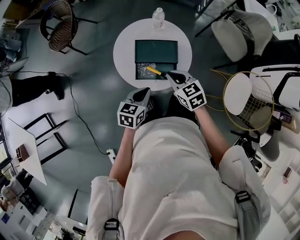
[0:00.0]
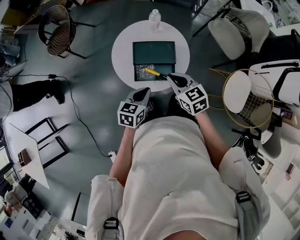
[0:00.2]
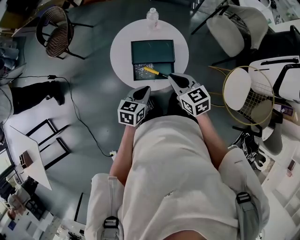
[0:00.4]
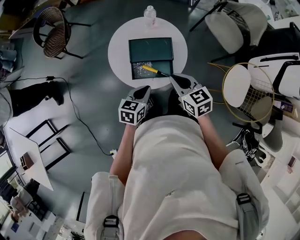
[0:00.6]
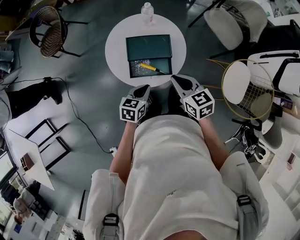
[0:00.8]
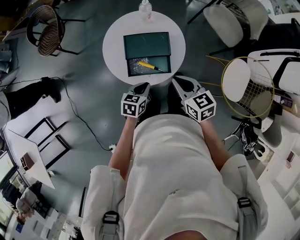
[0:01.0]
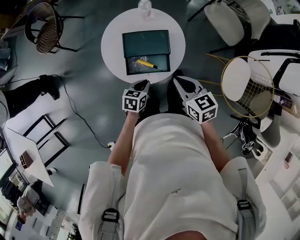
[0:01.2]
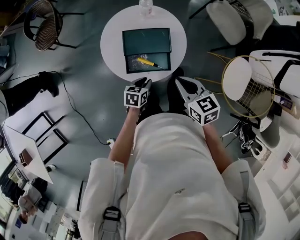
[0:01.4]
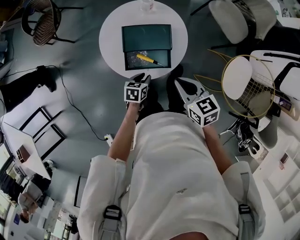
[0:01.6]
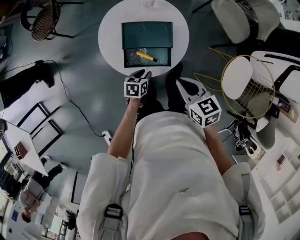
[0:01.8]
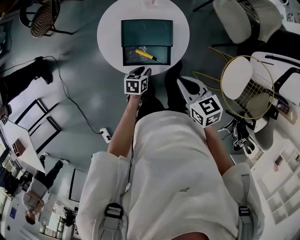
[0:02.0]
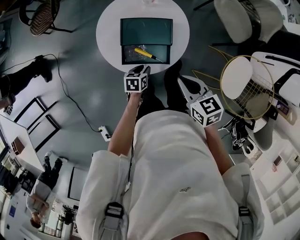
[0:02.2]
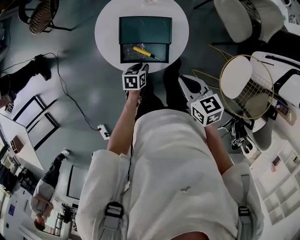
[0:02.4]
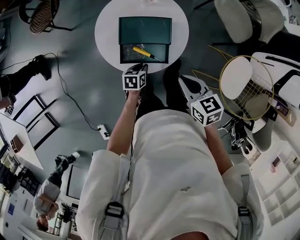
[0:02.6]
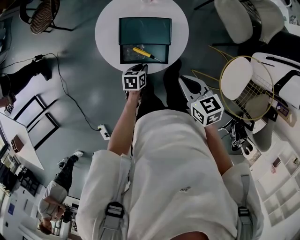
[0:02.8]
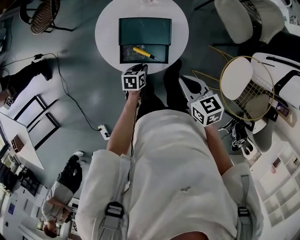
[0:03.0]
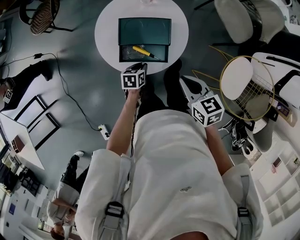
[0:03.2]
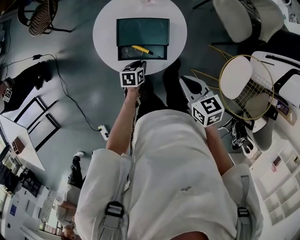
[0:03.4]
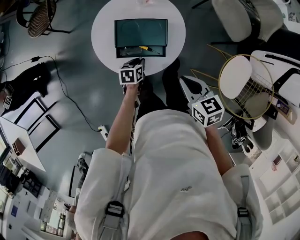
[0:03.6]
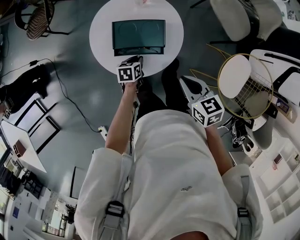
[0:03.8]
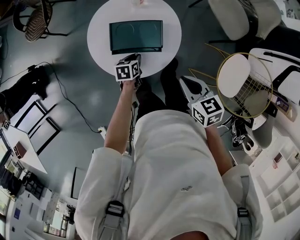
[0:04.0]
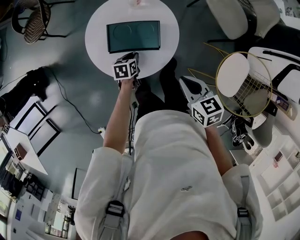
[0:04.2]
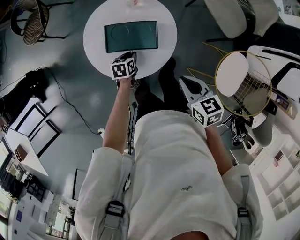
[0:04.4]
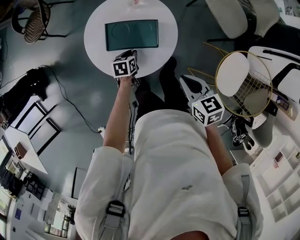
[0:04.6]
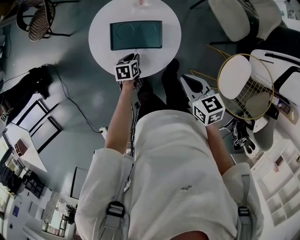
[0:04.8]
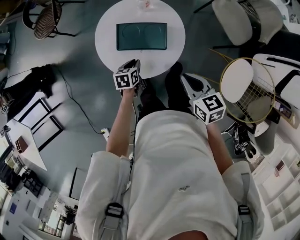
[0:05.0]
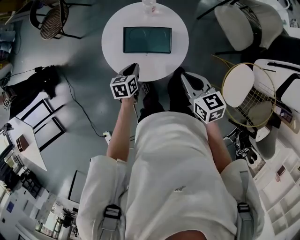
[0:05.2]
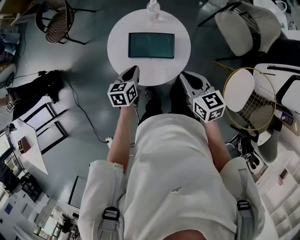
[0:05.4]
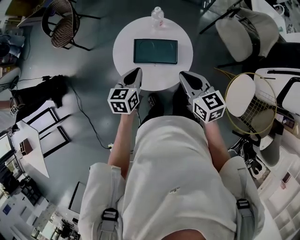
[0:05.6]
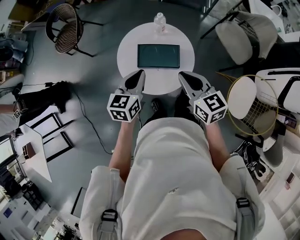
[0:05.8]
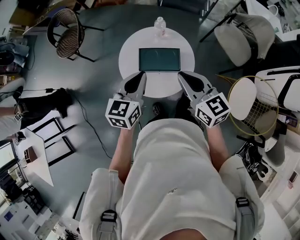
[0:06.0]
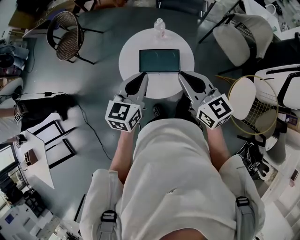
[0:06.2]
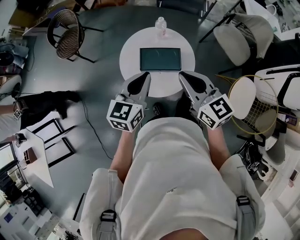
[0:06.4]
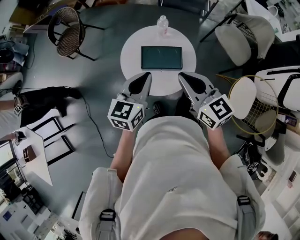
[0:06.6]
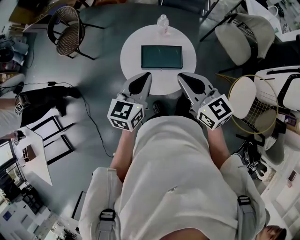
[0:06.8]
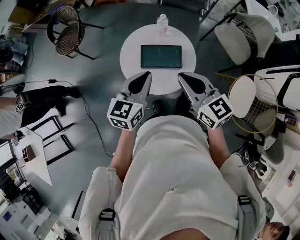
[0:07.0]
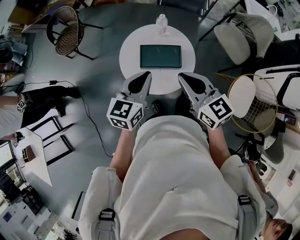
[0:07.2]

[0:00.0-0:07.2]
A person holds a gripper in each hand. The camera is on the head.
0:00.0 to 0:01.4: The right gripper is displaced to the right by some 5 cm. The left gripper heads downward, covering roughly 15 cm.
0:01.4 to 0:02.8: The left gripper heads downward, covering roughly 5 cm.
0:02.8 to 0:04.4: The left gripper shifts roughly 10 cm forward. The right gripper heads to the right, covering roughly 5 cm.
0:04.4 to 0:05.8: The right gripper heads upward, to the left and forward, covering approximately 15 cm, and swivels approximately 20 degrees. Meanwhile the left gripper is displaced upward by approximately 30 cm, and swivels some 30 degrees.
0:05.8 to 0:07.2: Both grippers travel together upward, roughly 5 cm.

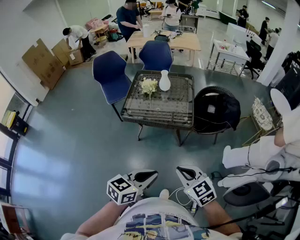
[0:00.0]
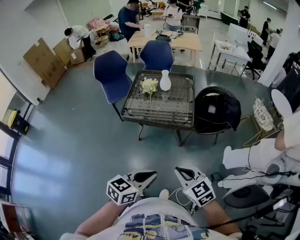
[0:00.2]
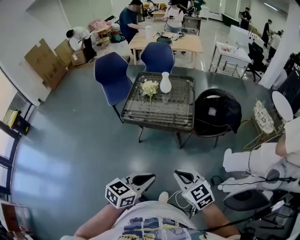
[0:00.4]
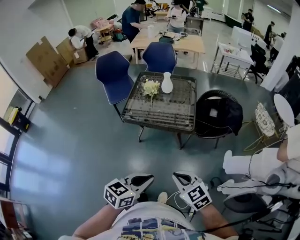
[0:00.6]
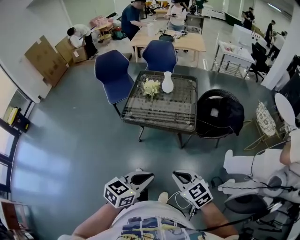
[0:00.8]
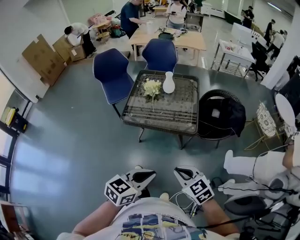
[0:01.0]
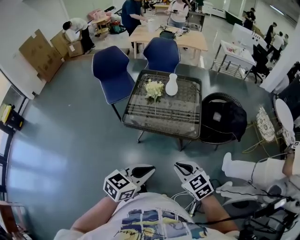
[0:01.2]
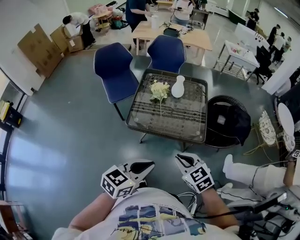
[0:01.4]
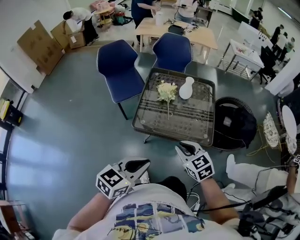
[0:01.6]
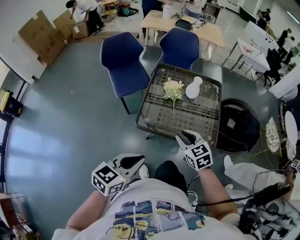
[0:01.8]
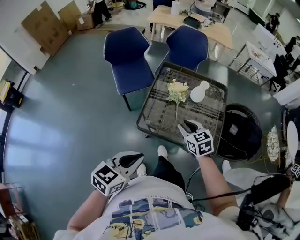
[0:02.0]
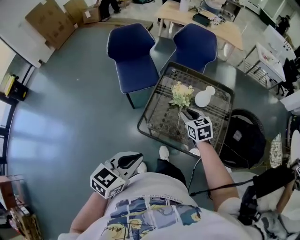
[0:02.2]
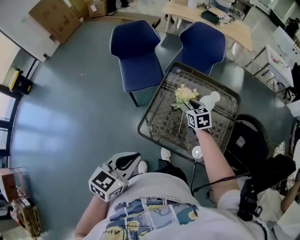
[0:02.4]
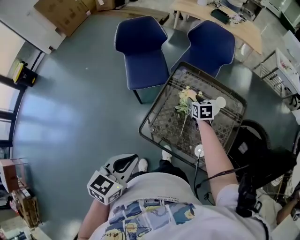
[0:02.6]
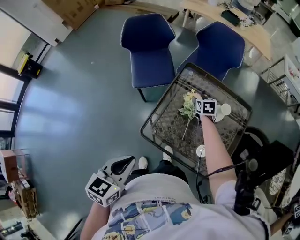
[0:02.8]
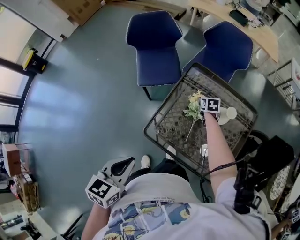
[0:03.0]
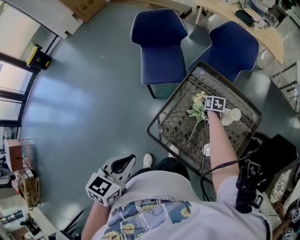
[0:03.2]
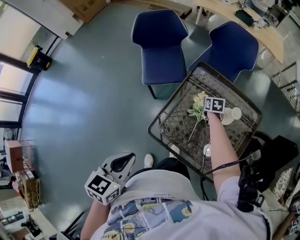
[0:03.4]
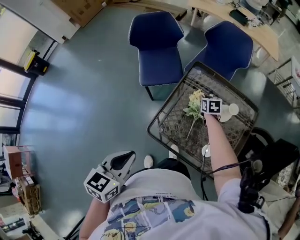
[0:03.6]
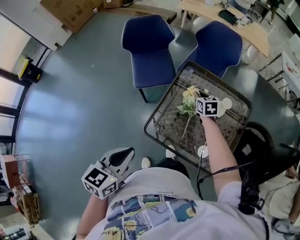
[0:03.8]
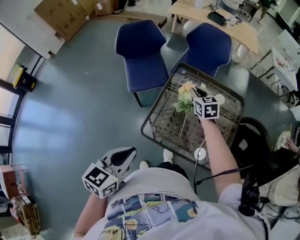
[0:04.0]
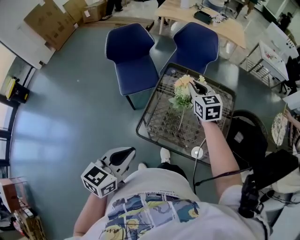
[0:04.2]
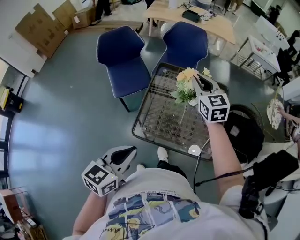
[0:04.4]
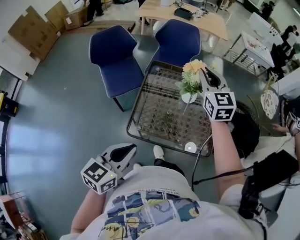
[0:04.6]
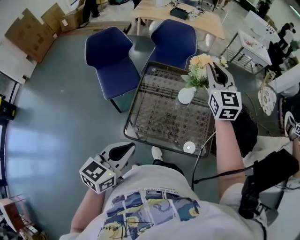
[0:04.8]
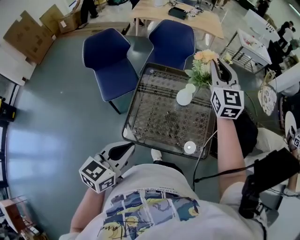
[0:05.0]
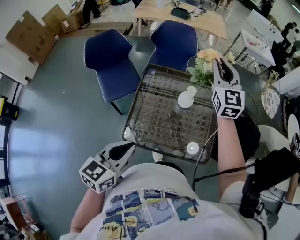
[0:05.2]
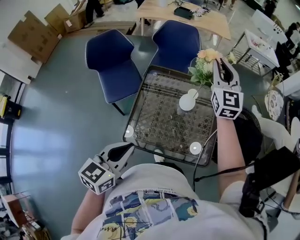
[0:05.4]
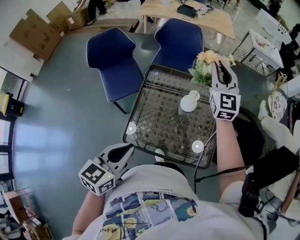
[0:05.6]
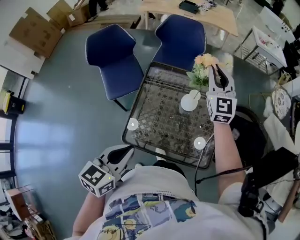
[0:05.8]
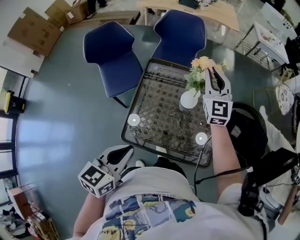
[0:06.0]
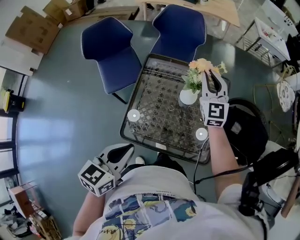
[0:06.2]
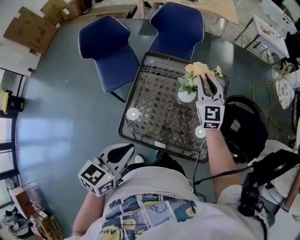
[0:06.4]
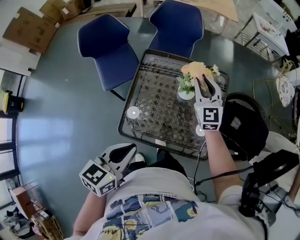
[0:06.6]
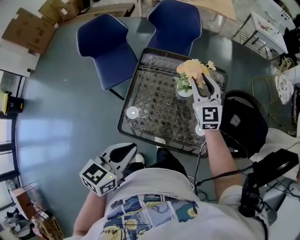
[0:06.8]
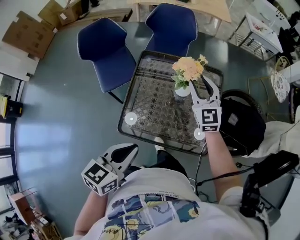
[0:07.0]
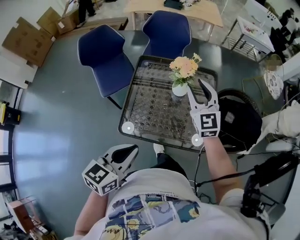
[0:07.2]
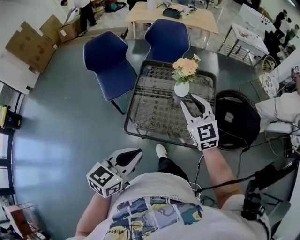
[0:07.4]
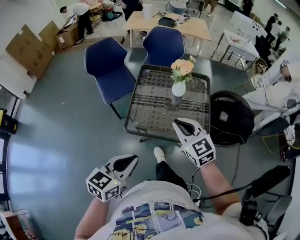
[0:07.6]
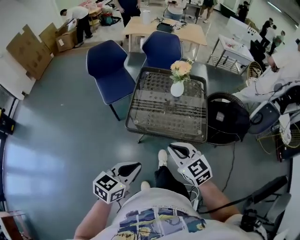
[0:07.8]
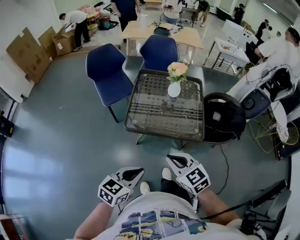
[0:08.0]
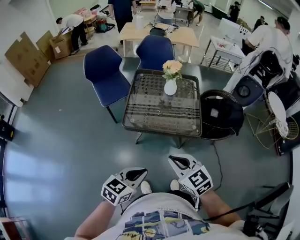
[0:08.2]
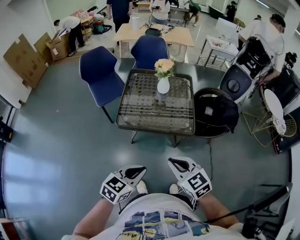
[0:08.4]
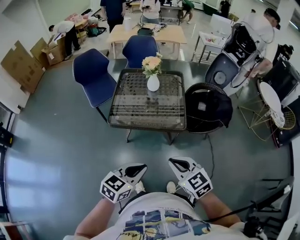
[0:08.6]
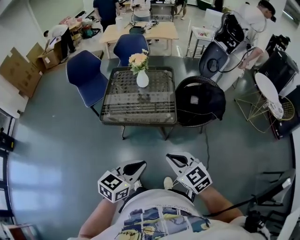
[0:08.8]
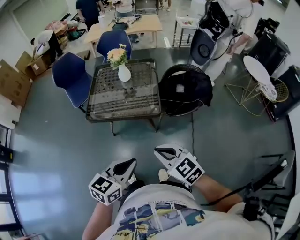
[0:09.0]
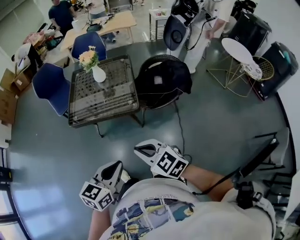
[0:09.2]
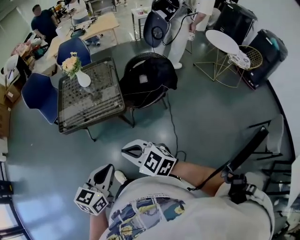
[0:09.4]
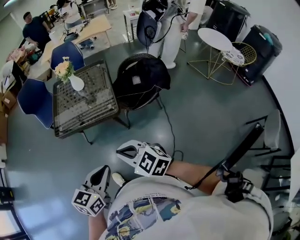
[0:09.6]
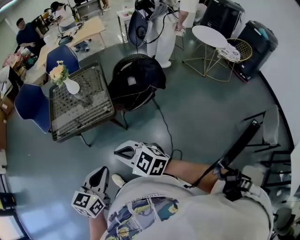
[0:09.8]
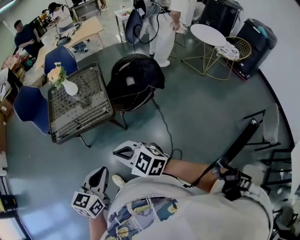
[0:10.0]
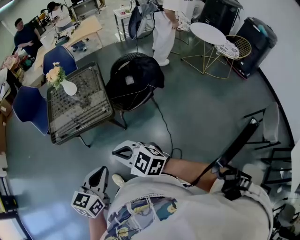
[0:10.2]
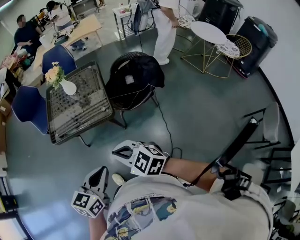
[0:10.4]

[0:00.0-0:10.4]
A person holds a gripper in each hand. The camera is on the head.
0:00.0 to 0:01.4: The two grippers go some 25 cm forward and to the left.
0:01.4 to 0:03.0: The left gripper goes about 30 cm forward and to the left, and swivels approximately 40 degrees; the right gripper heads forward and downward, covering some 70 cm, changes its angle by about 30 degrees, and opens its fingers.
0:03.0 to 0:04.4: The right gripper heads upward, covering approximately 35 cm, tilts its fingers some 40 degrees upward, and closes. The left gripper shifts by about 5 cm, and rotates approximately 30 degrees.
0:04.4 to 0:06.0: The grippers both shift forward and to the right by about 15 cm. The right gripper swivels some 20 degrees.
0:06.0 to 0:07.4: The right gripper heads backward, covering some 25 cm, and opens its fingers, while the left gripper goes approximately 15 cm backward.
0:07.4 to 0:09.0: The grippers both shift backward and to the right by roughly 40 cm. The right gripper swivels some 20 degrees, and closes.
0:09.0 to 0:10.4: The grippers both shift to the right by about 10 cm.

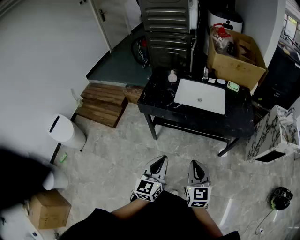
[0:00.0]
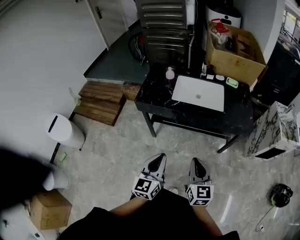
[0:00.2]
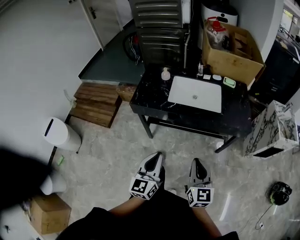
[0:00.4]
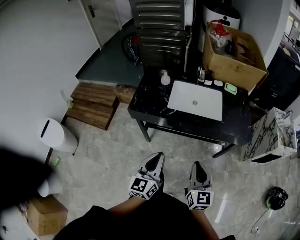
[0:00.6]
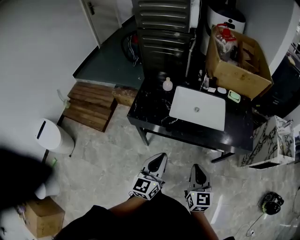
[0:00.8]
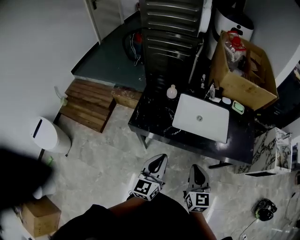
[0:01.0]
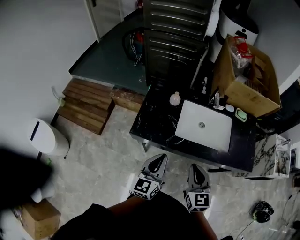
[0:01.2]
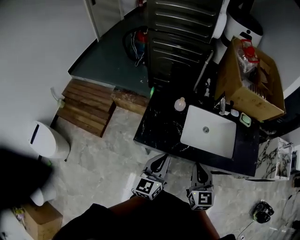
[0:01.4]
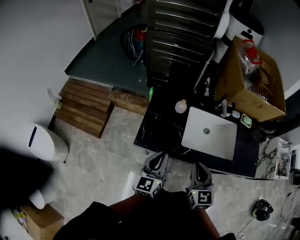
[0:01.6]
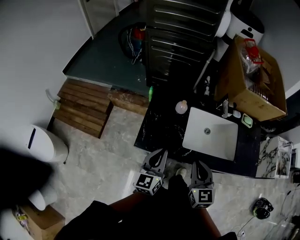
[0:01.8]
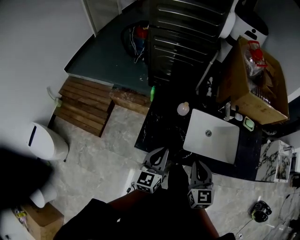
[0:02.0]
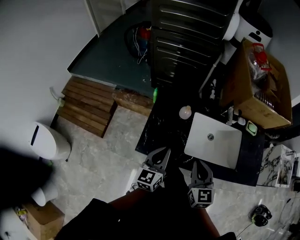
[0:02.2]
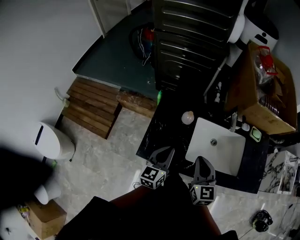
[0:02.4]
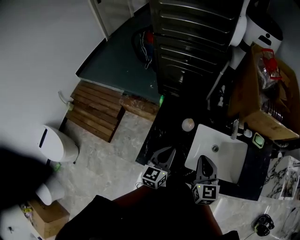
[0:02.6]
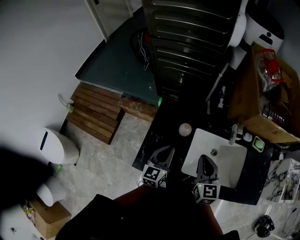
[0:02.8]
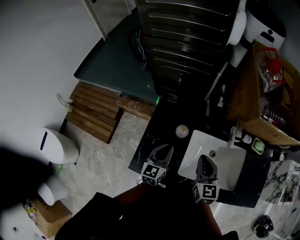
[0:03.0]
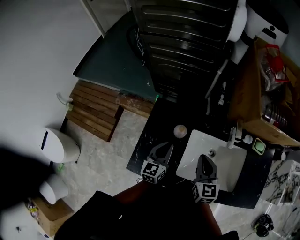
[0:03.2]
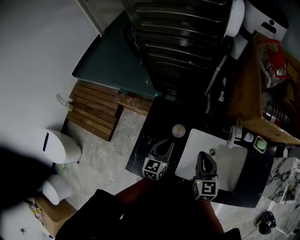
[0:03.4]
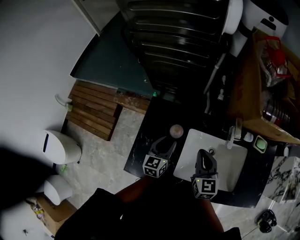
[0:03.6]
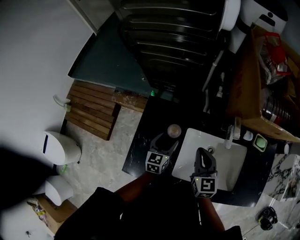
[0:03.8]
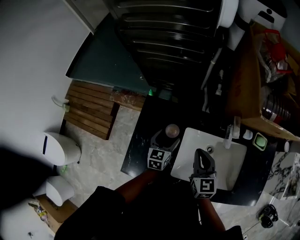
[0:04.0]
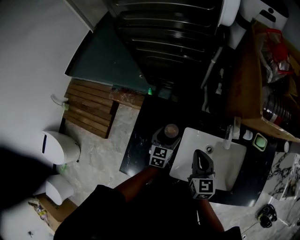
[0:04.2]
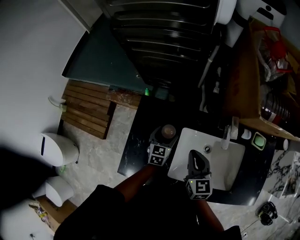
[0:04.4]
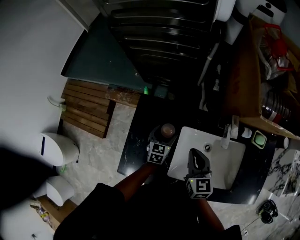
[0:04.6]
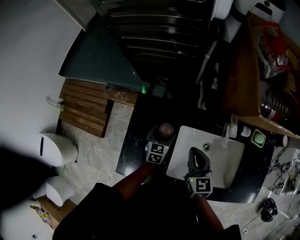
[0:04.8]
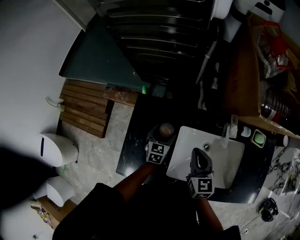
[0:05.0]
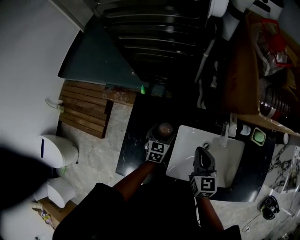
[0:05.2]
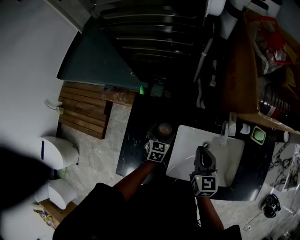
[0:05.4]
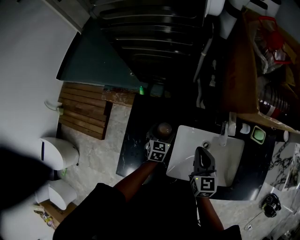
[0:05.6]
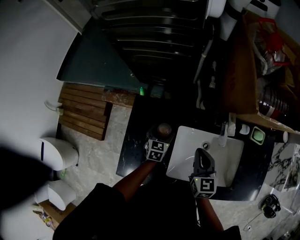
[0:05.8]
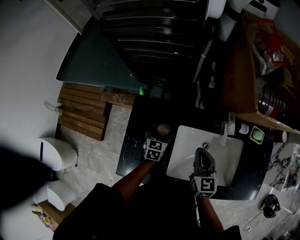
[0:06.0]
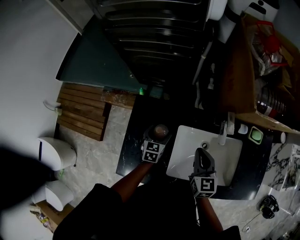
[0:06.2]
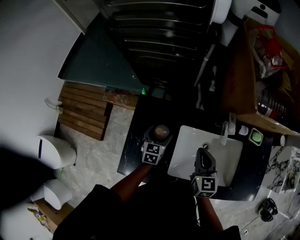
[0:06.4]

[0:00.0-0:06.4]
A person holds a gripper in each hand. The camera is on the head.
0:00.0 to 0:01.6: The two grippers travel together, forward and to the left, some 40 cm.
0:01.6 to 0:03.2: The two grippers go approximately 25 cm forward.
0:03.2 to 0:04.8: The left gripper travels downward and forward by roughly 15 cm, swivels approximately 20 degrees, and opens up, while the right gripper goes some 5 cm forward.
0:04.8 to 0:06.4: The grippers move only a little.
